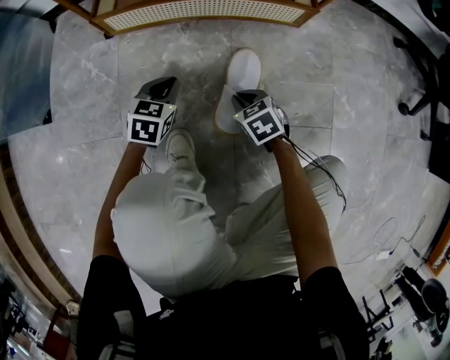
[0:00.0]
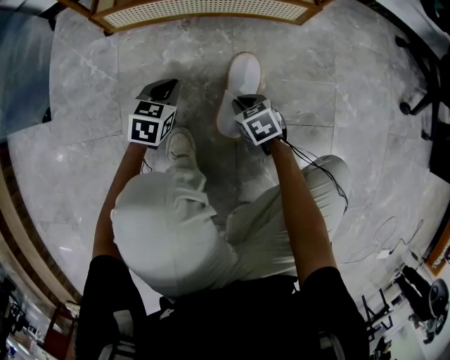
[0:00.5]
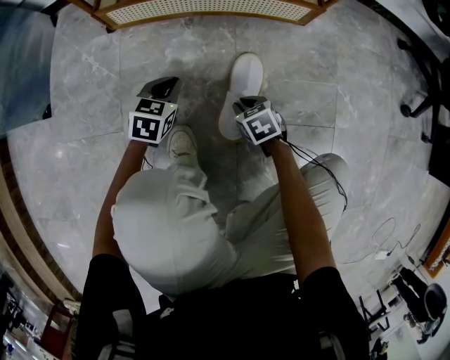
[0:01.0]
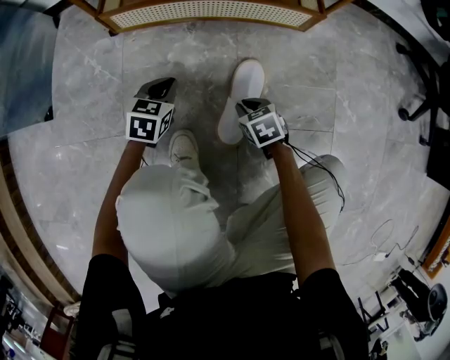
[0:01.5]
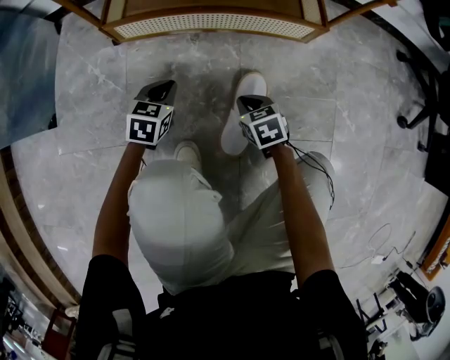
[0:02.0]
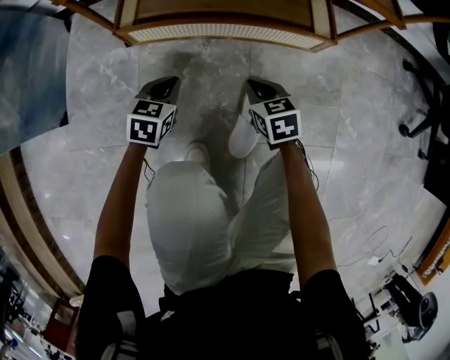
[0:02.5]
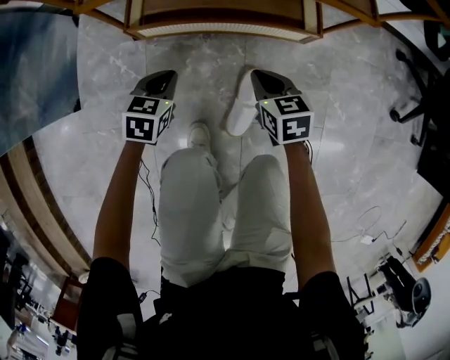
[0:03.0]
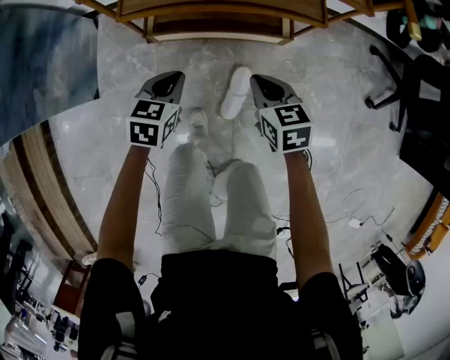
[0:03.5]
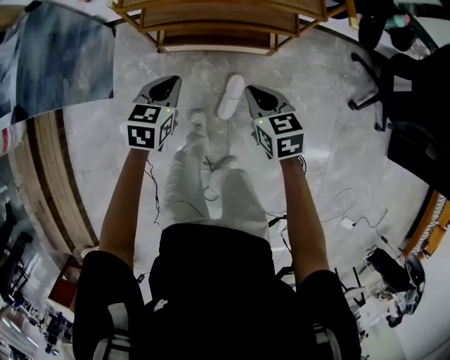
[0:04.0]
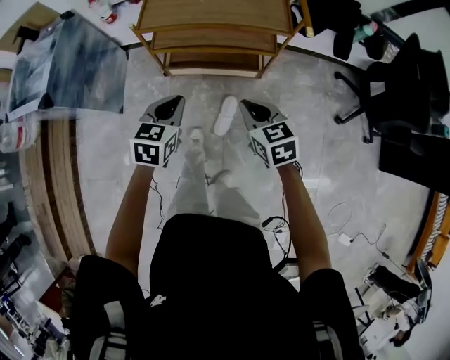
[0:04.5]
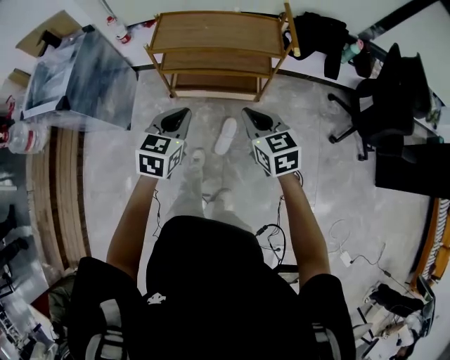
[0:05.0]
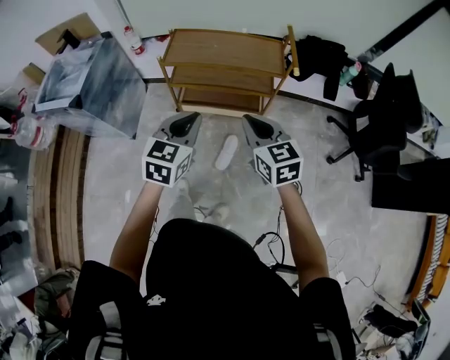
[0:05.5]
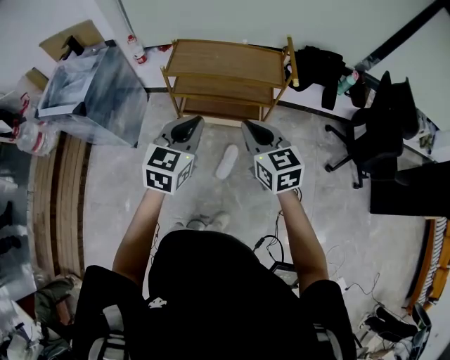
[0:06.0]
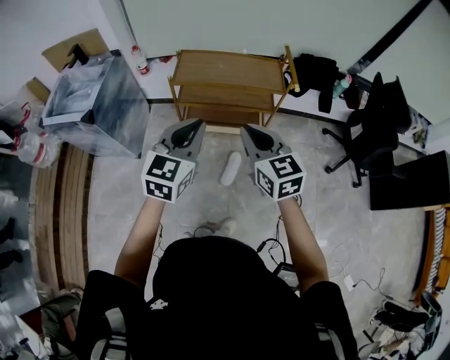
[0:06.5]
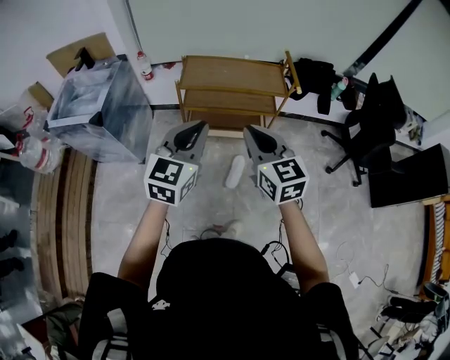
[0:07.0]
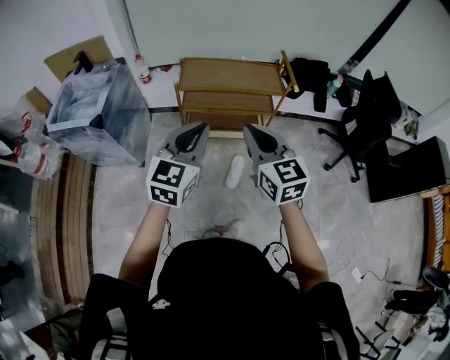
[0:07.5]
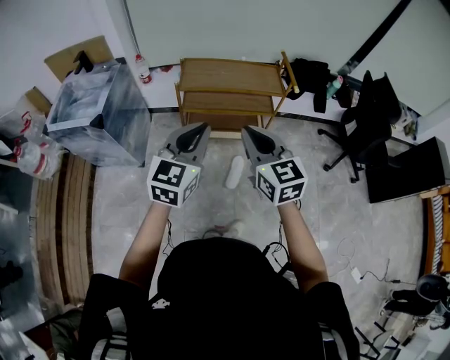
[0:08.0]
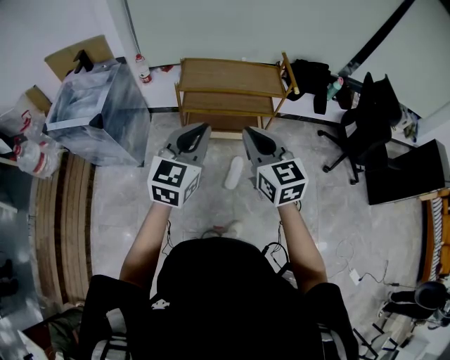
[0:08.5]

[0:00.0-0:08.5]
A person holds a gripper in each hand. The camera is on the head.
0.0 to 2.0 s: The left gripper shifts by roughly 5 cm.
2.0 to 4.0 s: Both grippers travel together upward, approximately 60 cm.
4.0 to 6.5 s: The right gripper goes roughly 40 cm upward, and rotates some 30 degrees, while the left gripper heads upward and backward, covering approximately 40 cm, and points its fingers approximately 30 degrees further upward.
6.5 to 8.5 s: The two grippers go some 10 cm to the left and backward.

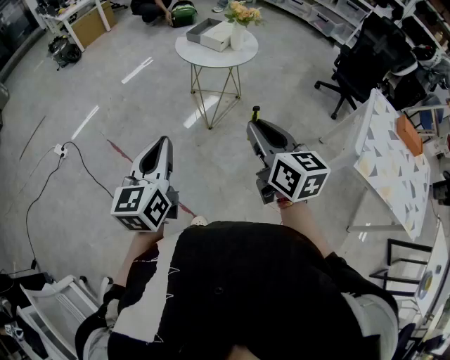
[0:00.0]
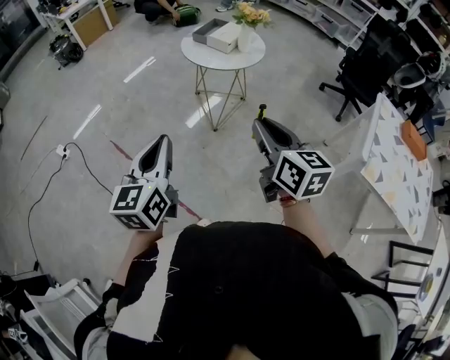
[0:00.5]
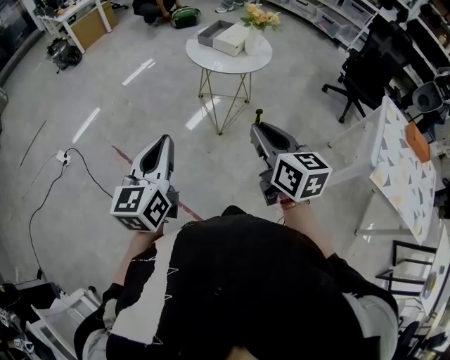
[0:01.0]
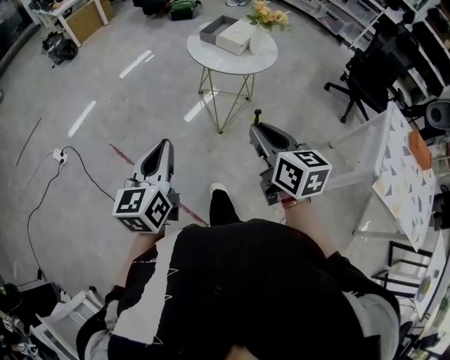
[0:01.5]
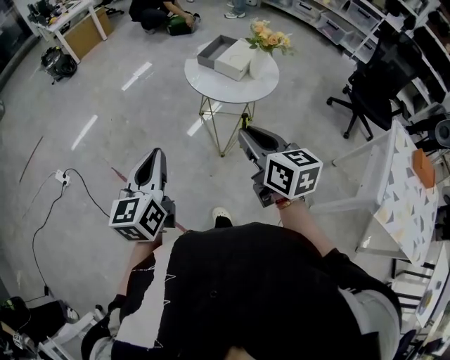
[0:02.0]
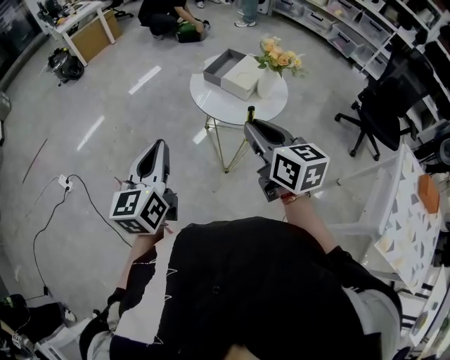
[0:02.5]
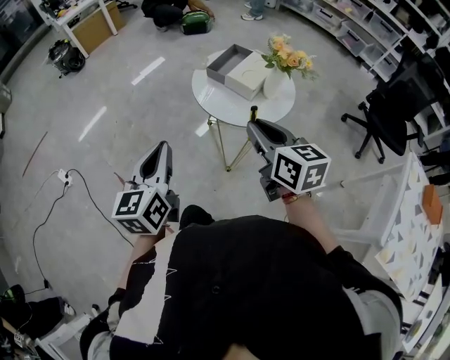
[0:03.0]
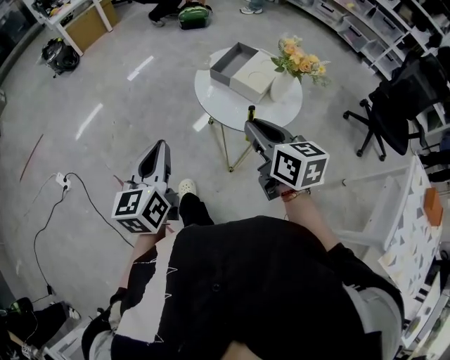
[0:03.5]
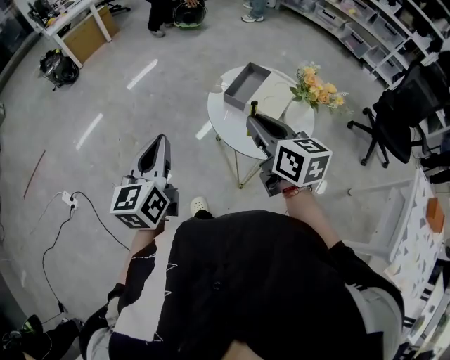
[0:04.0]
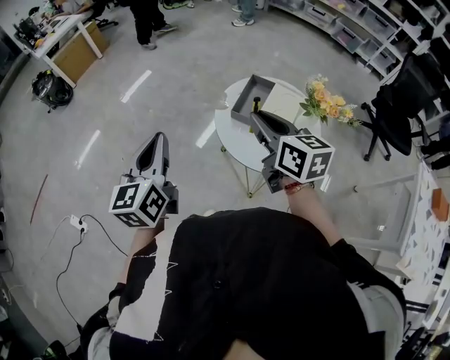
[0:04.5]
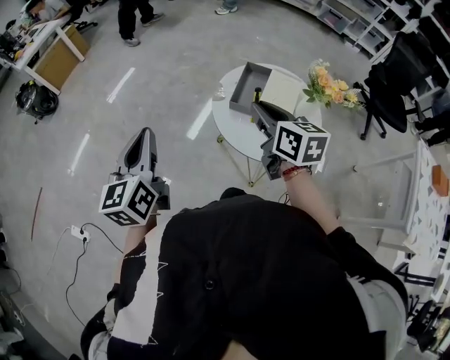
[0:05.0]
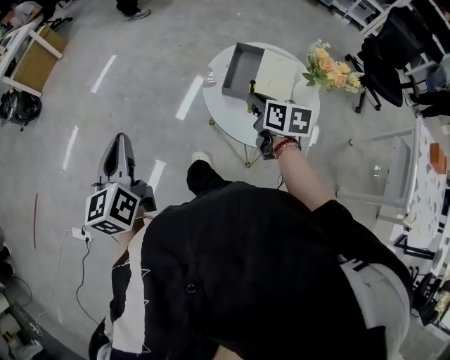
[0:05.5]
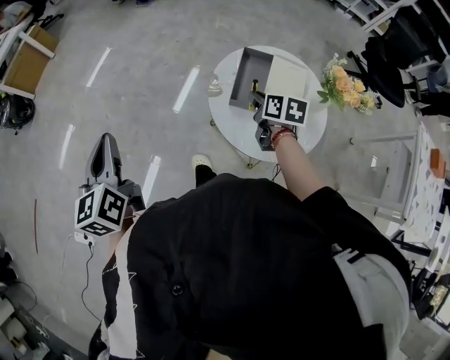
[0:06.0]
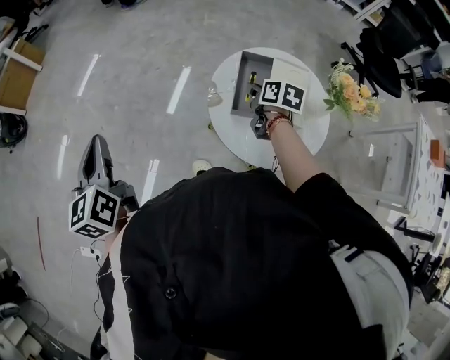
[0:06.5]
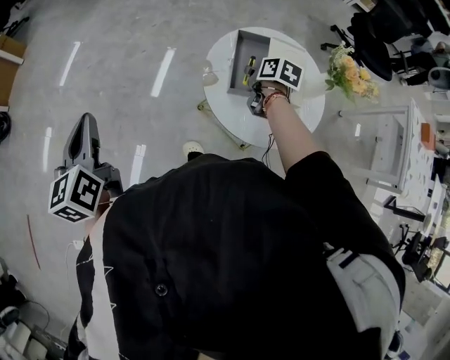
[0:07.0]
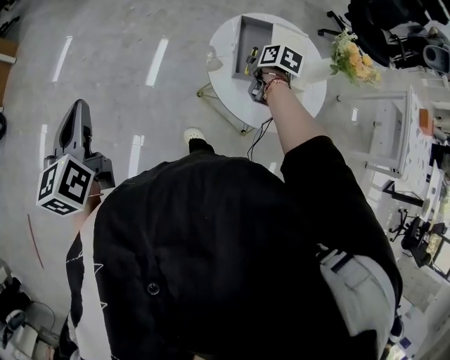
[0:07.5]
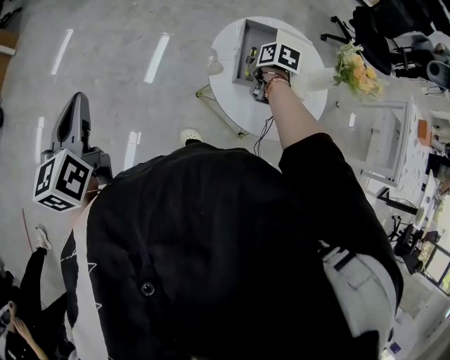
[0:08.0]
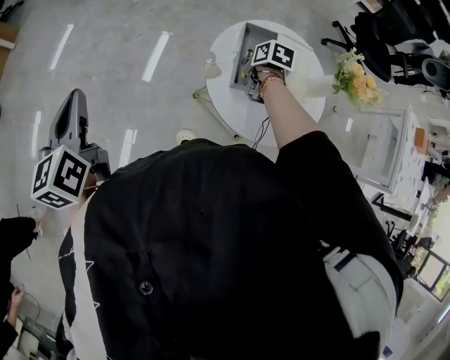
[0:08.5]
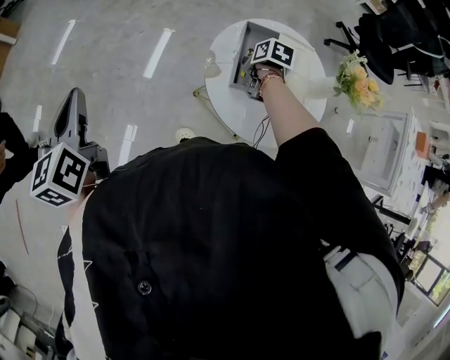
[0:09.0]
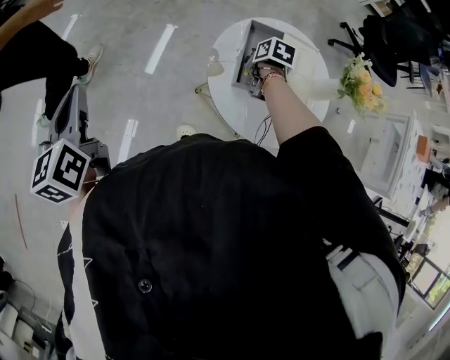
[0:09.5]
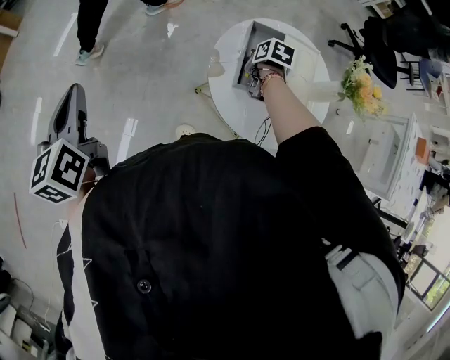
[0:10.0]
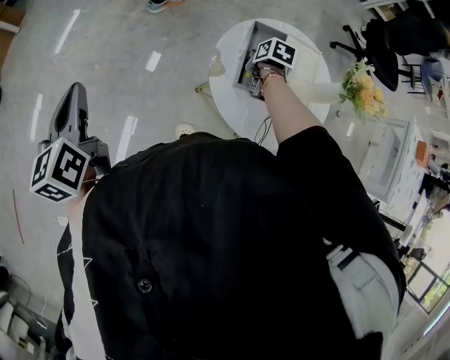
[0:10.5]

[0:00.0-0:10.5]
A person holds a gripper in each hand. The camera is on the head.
0.0 to 2.0 s: Both grippers move forward, approximately 25 cm.
2.0 to 4.0 s: Both grippers travel together forward, about 30 cm.
4.0 to 6.5 s: The left gripper shifts about 35 cm forward and to the left. The right gripper is displaced forward and downward by some 35 cm, and changes its angle by roughly 50 degrees.
6.5 to 8.5 s: The left gripper moves forward, roughly 5 cm. The right gripper goes about 5 cm downward, and changes its angle by about 20 degrees.
8.5 to 10.5 s: The grippers make only small movements.

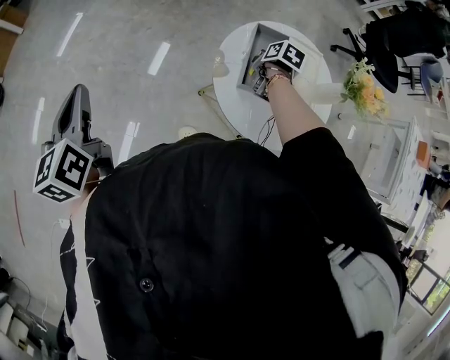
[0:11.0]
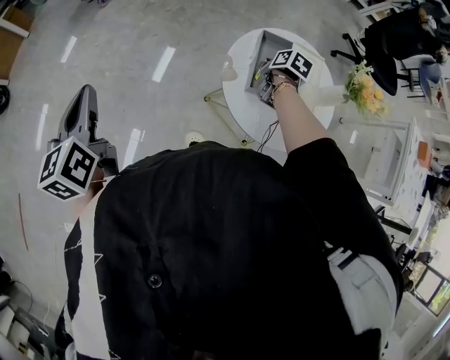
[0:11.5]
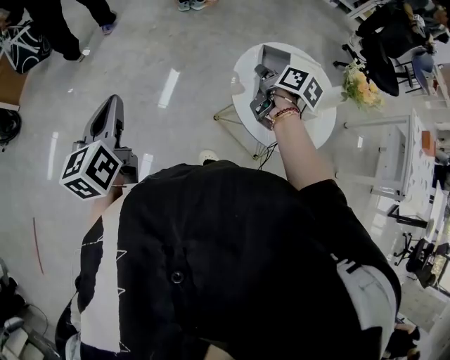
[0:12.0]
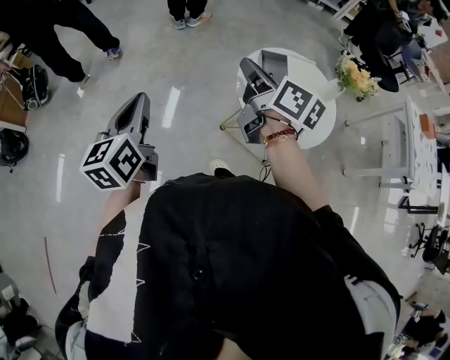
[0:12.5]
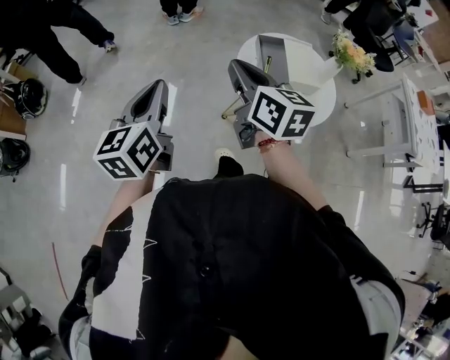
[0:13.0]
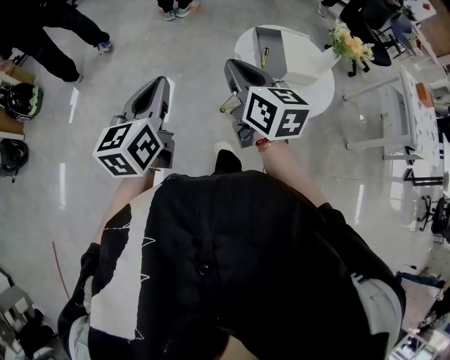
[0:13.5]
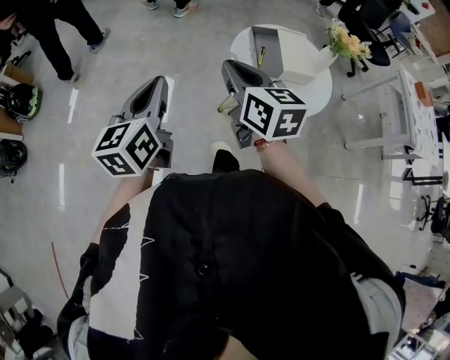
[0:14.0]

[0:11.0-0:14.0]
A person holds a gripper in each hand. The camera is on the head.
11.0 to 12.5 s: The right gripper travels upward and to the left by approximately 40 cm, and tilts its fingers roughly 60 degrees upward; the left gripper moves upward, about 5 cm, and swivels about 20 degrees.
12.5 to 14.0 s: The left gripper shifts by approximately 5 cm; the right gripper heads backward, covering some 10 cm, and changes its angle by some 30 degrees.

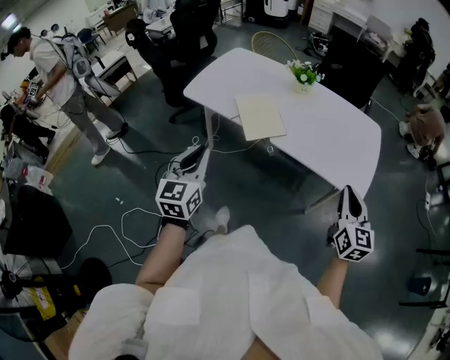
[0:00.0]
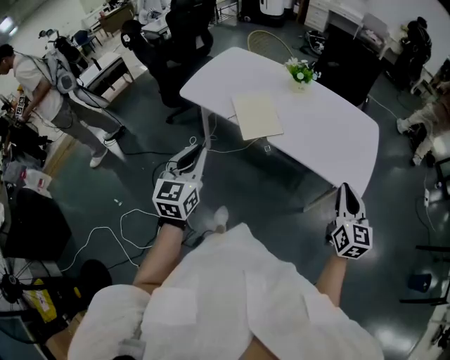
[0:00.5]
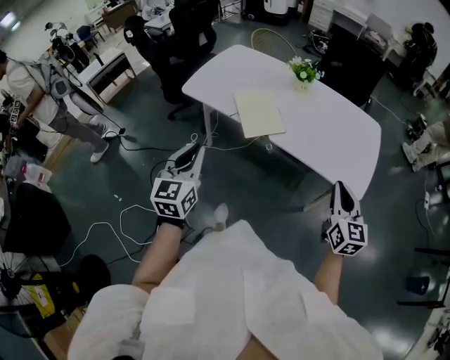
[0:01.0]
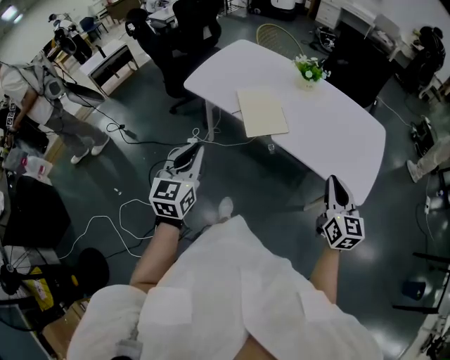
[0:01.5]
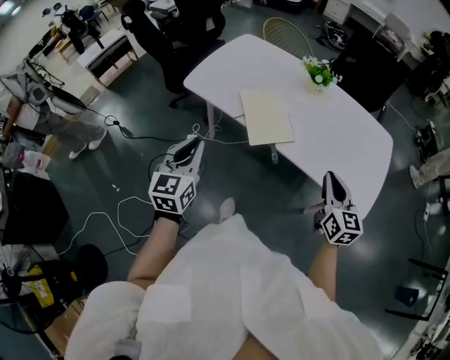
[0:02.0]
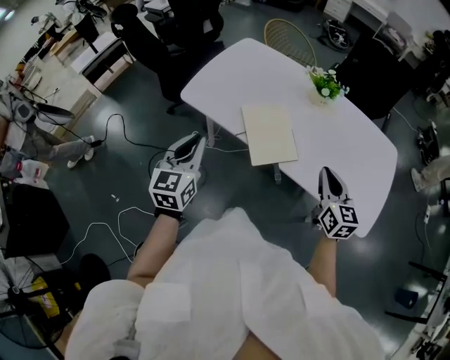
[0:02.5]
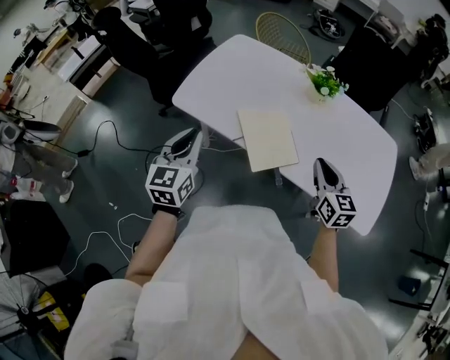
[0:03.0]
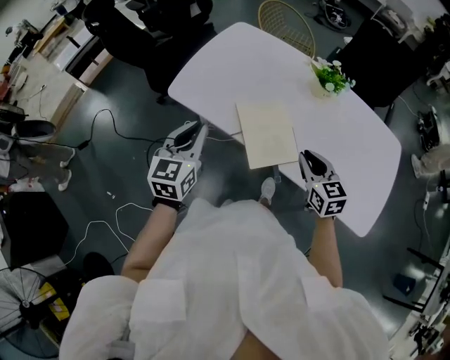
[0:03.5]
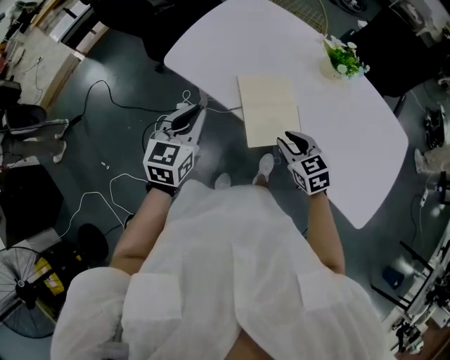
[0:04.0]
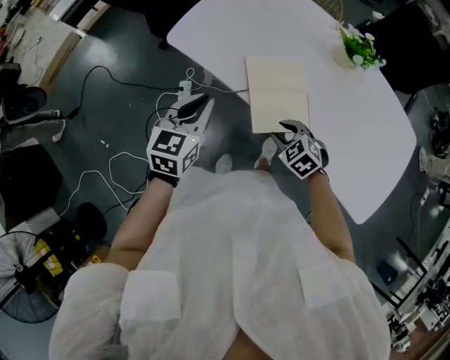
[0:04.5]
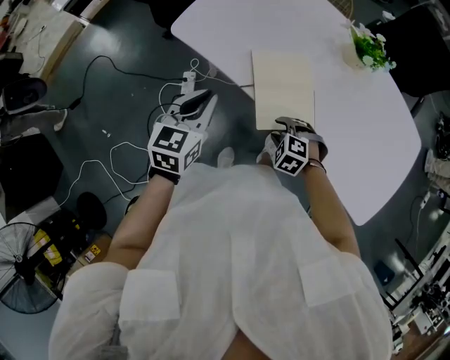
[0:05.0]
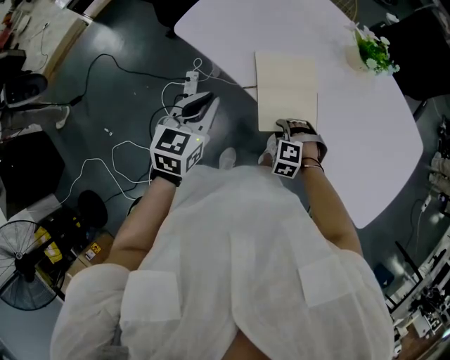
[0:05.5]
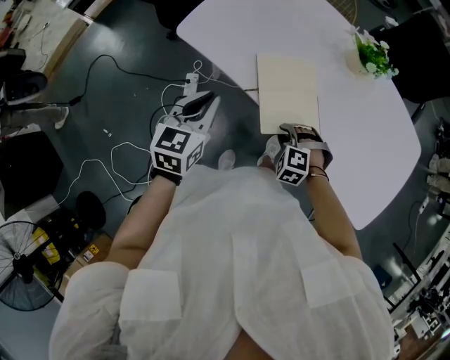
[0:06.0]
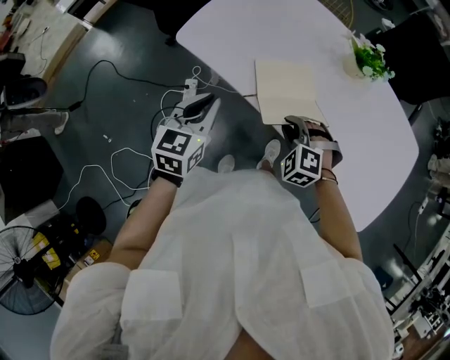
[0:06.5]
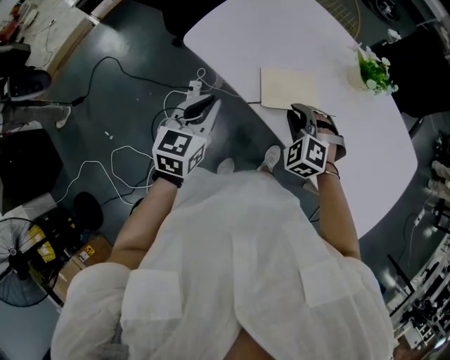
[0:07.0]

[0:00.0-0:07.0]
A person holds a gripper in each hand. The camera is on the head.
0.0 to 2.0 s: The right gripper moves forward and to the left, some 15 cm; the left gripper is displaced forward by approximately 10 cm.
2.0 to 3.5 s: The left gripper heads forward, covering about 20 cm. The right gripper shifts approximately 25 cm forward, to the left and downward, and rotates some 20 degrees.
3.5 to 5.0 s: The right gripper heads downward and to the left, covering approximately 25 cm, points its fingers about 40 degrees further downward, and opens up, while the left gripper shifts some 10 cm downward.
5.0 to 7.0 s: The right gripper shifts some 15 cm upward and forward, turns by about 20 degrees, and closes up.
